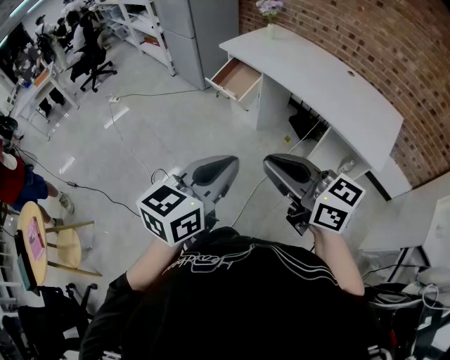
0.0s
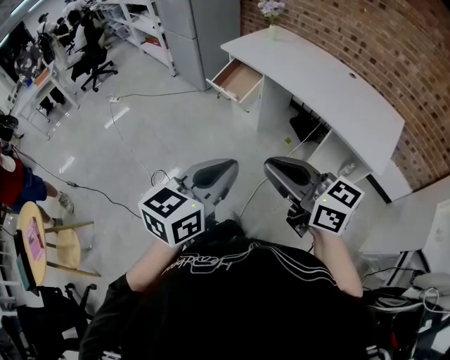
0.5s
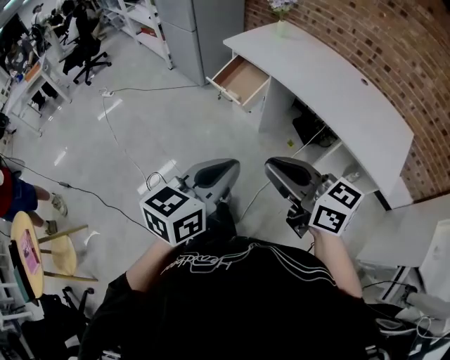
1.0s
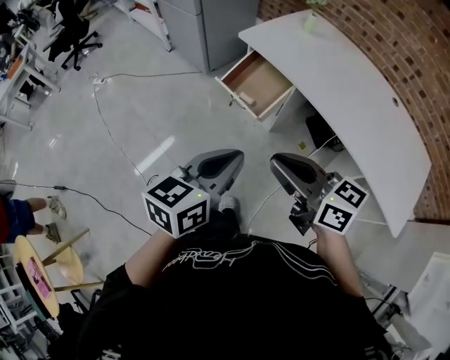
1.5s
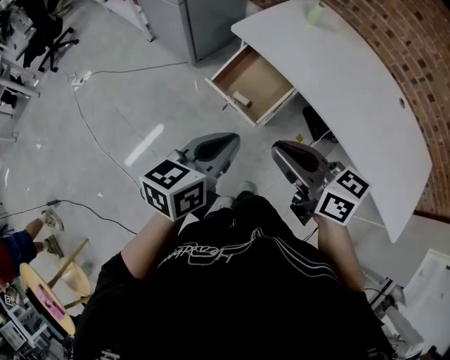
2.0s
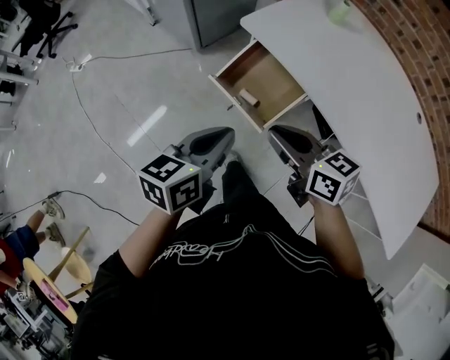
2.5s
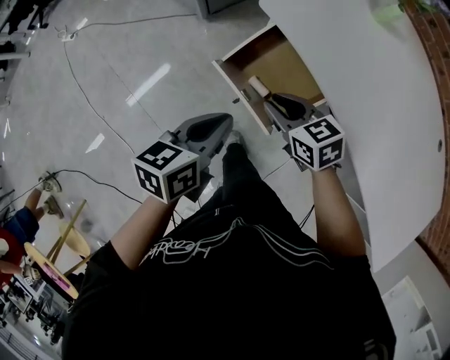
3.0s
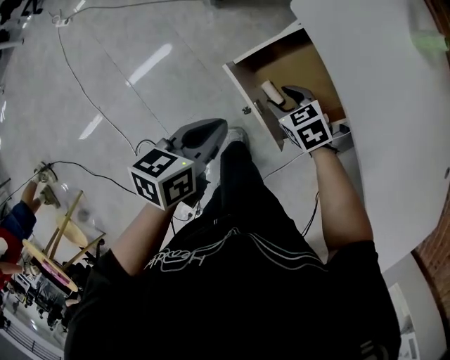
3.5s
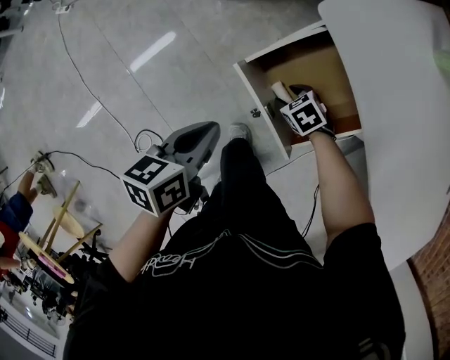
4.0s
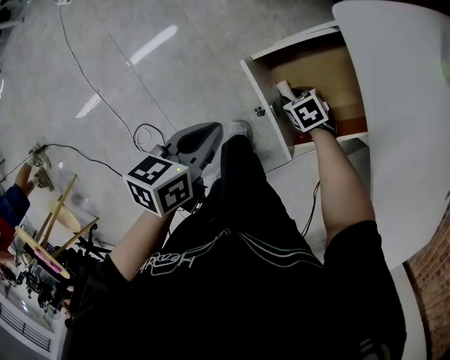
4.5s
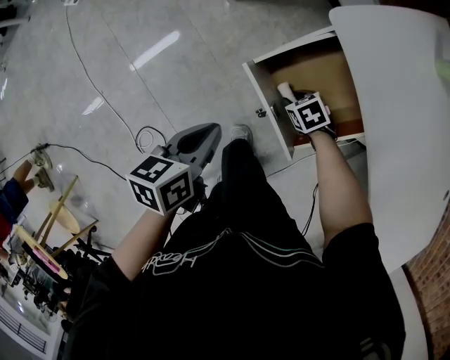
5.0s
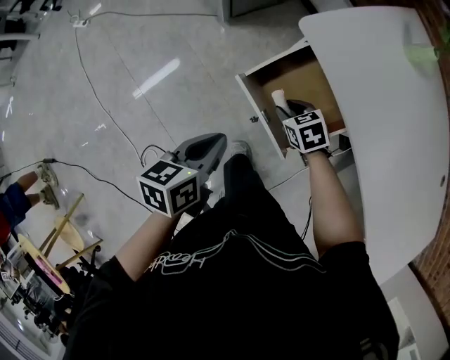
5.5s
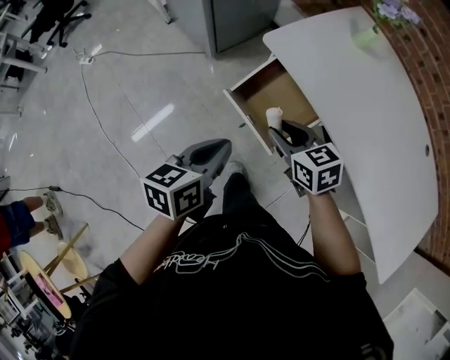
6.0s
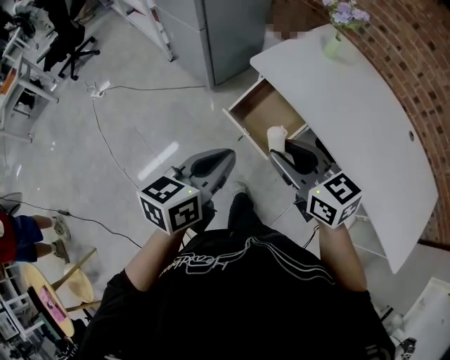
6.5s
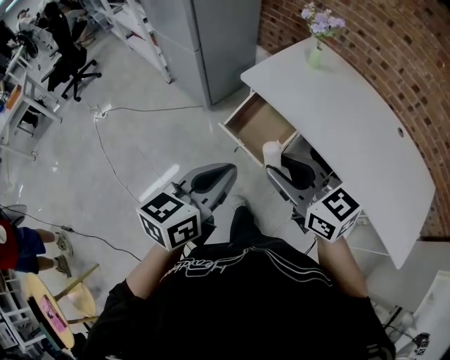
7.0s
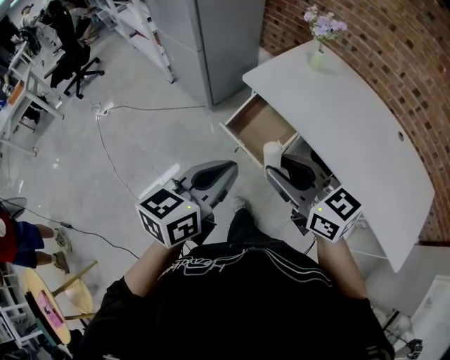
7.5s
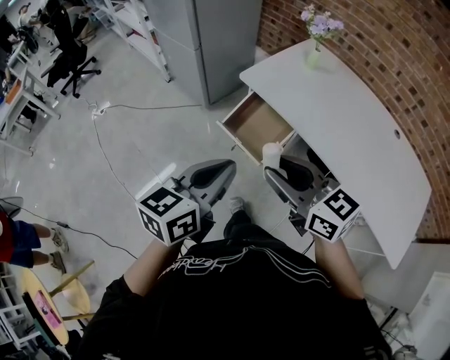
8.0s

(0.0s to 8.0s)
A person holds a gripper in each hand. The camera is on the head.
0.0s - 2.0s: Both grippers are carried forward, roughly 60 cm. The right gripper rotates about 20 degrees.
2.0s - 4.0s: The left gripper travels downward and forward by some 40 cm, and turns by some 30 degrees. Meanwhile the right gripper shifts some 60 cm downward and forward, points its fingers some 60 degrees further downward, and opens up.
4.0s - 6.0s: The right gripper goes about 35 cm upward, and tilts its fingers some 30 degrees upward, while the left gripper is displaced upward by roughly 20 cm.
6.0s - 8.0s: Both grippers move upward and backward, some 30 cm. The left gripper turns by about 20 degrees, while the right gripper turns by about 30 degrees.

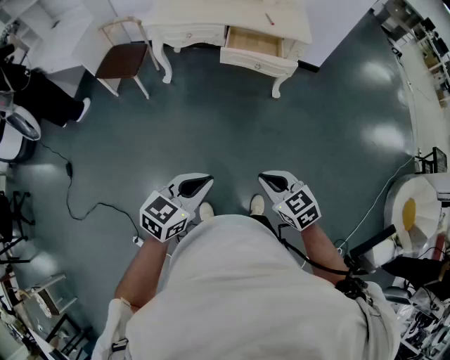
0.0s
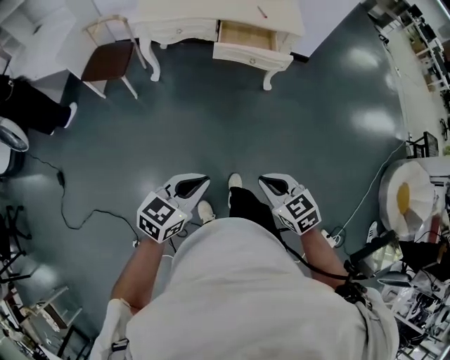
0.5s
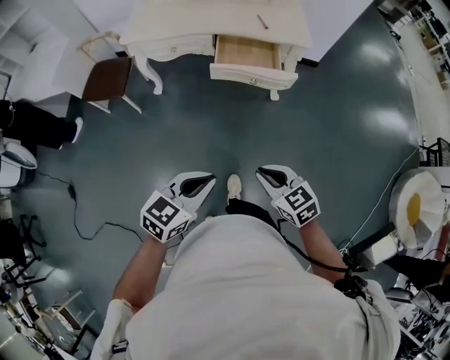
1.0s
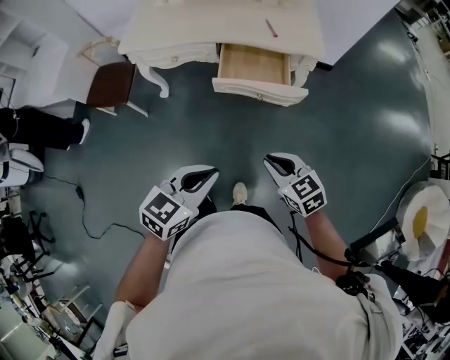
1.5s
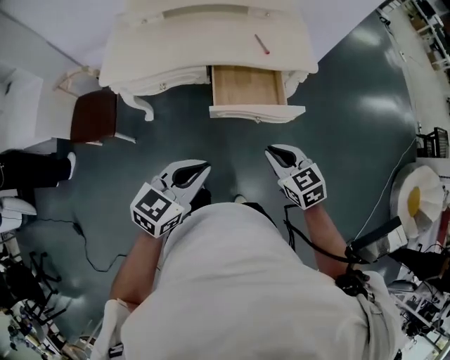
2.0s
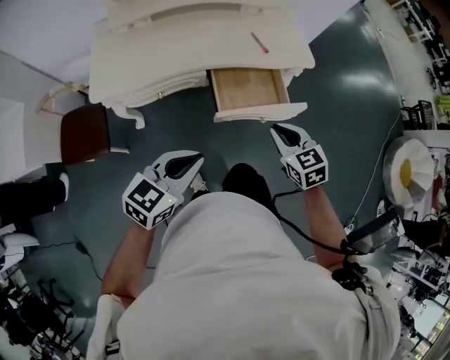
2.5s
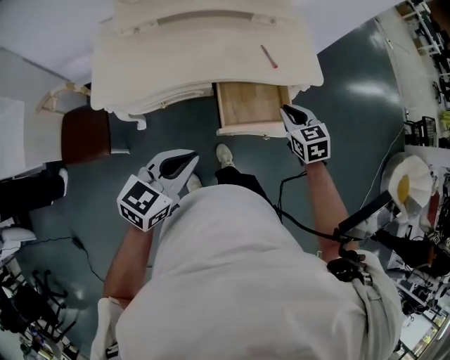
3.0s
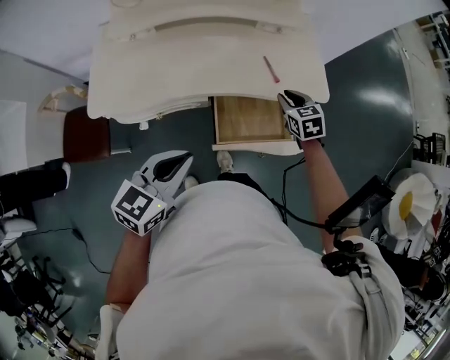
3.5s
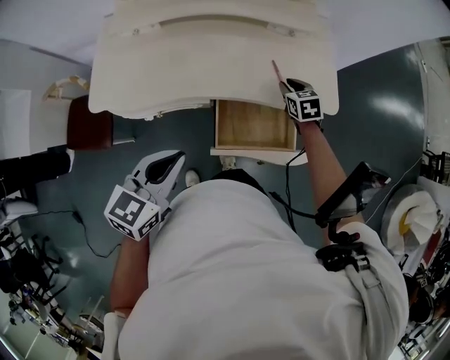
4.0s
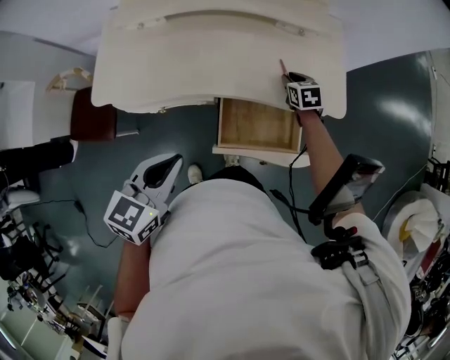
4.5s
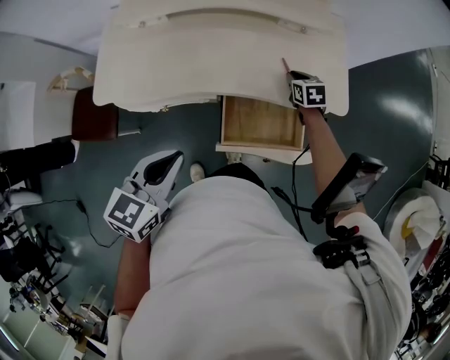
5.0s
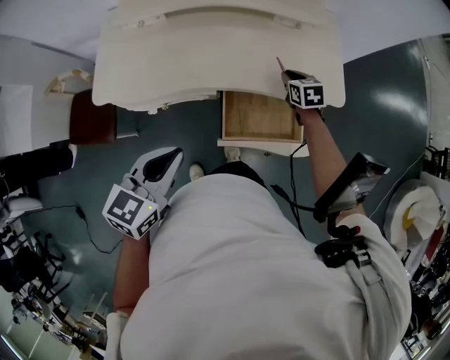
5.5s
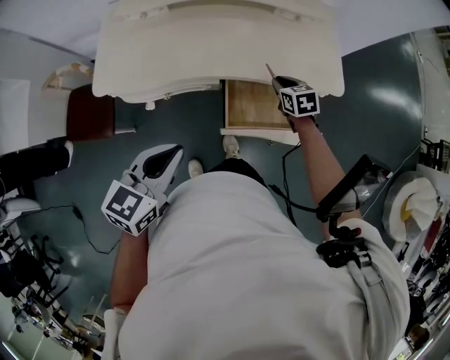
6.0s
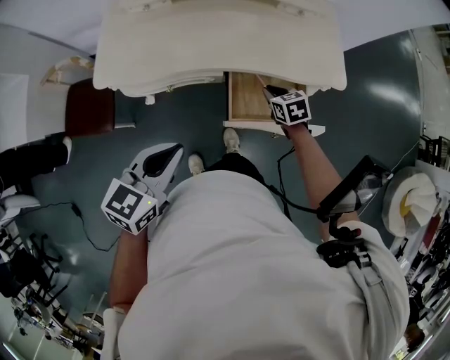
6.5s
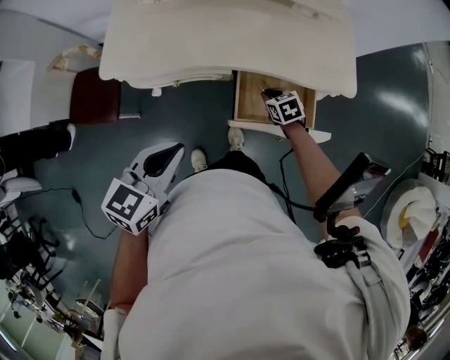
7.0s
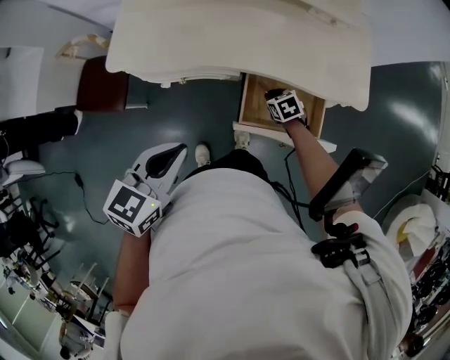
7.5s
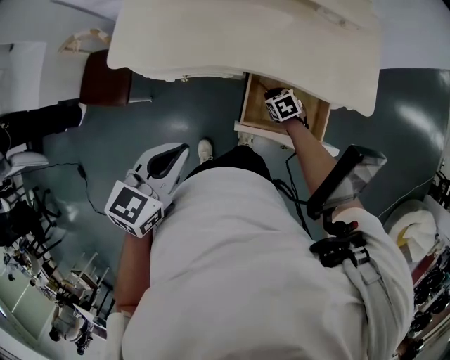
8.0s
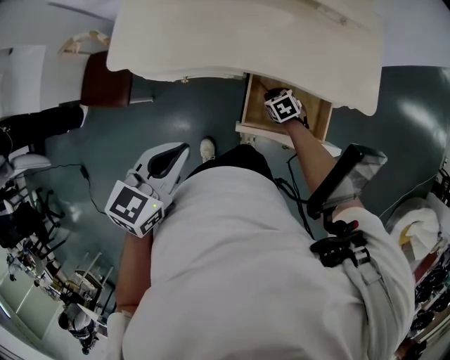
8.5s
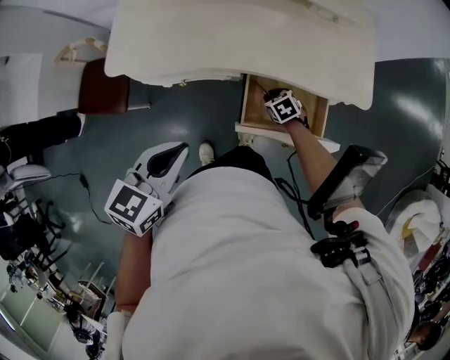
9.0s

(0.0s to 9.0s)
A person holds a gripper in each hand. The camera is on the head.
0.0s - 2.0s: The pair of grippers is taken forward, about 50 cm.
2.0s - 4.5s: The left gripper is displaced forward and to the left by approximately 25 cm. The right gripper heads forward, covering roughly 50 cm.
4.5s - 7.0s: The left gripper goes approximately 10 cm backward and to the left. Meanwhile the right gripper shifts some 20 cm backward and to the left.
7.0s - 9.0s: The right gripper travels downward by roughly 10 cm.

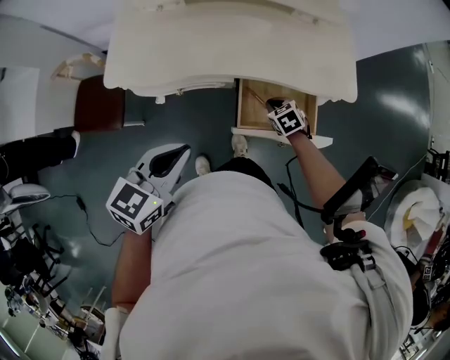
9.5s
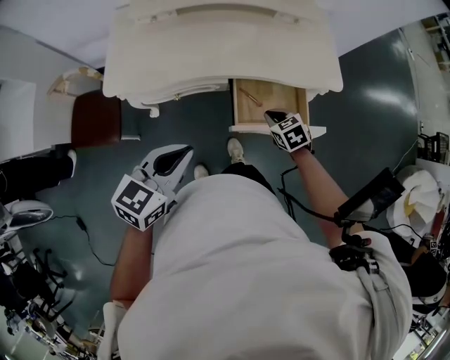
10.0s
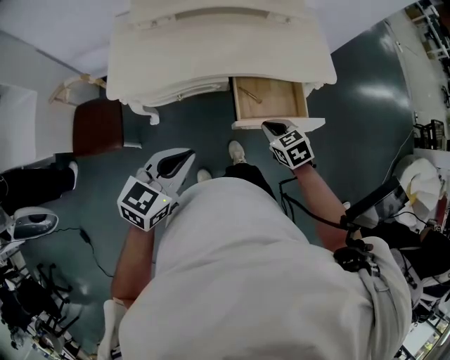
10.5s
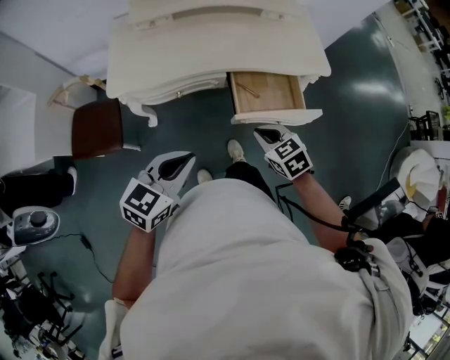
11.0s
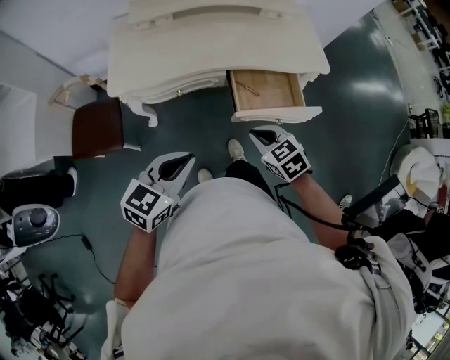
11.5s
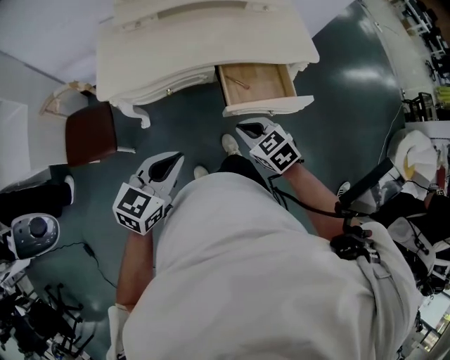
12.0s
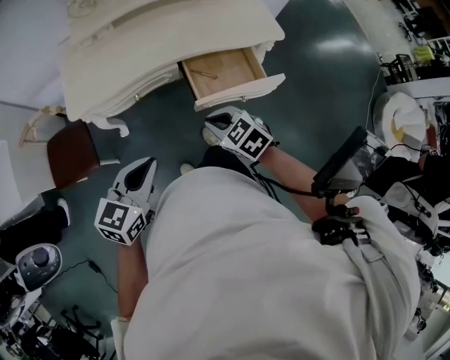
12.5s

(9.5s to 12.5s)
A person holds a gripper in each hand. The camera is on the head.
9.5s - 11.0s: The left gripper is displaced backward by approximately 15 cm. The right gripper goes roughly 30 cm backward and upward.
11.0s - 12.5s: There are only small adjustments of the grippers.

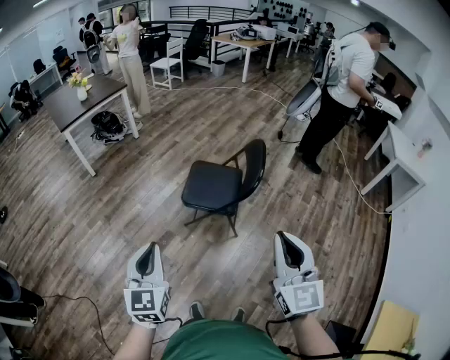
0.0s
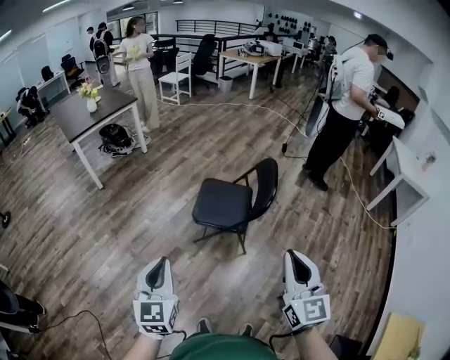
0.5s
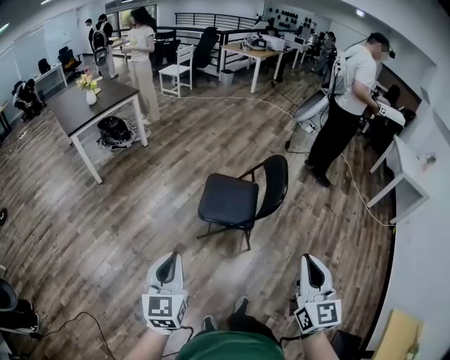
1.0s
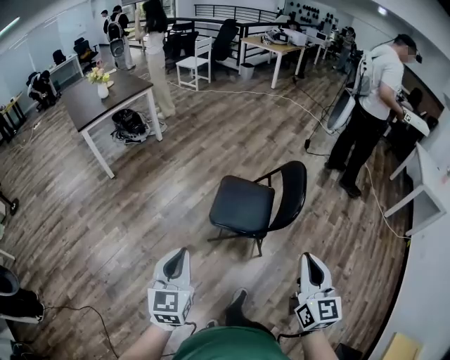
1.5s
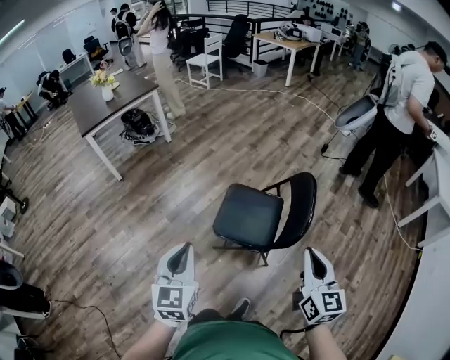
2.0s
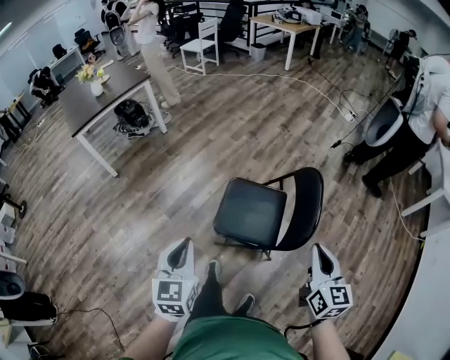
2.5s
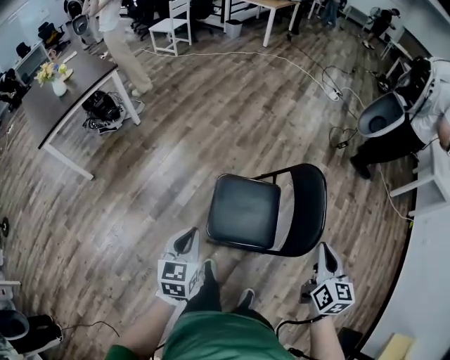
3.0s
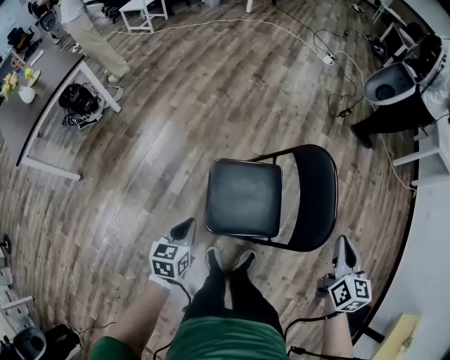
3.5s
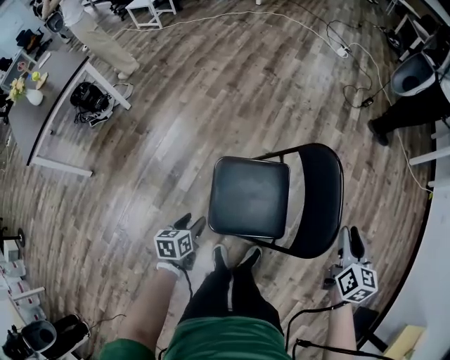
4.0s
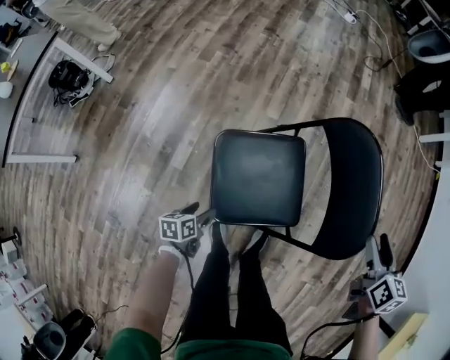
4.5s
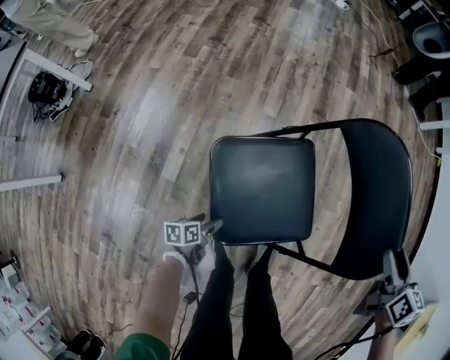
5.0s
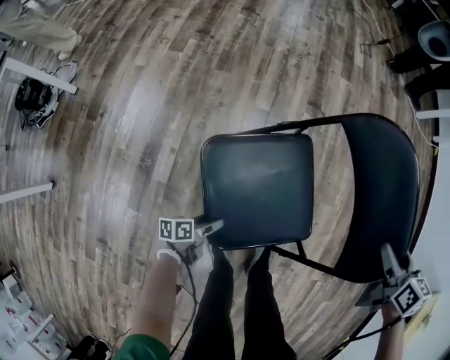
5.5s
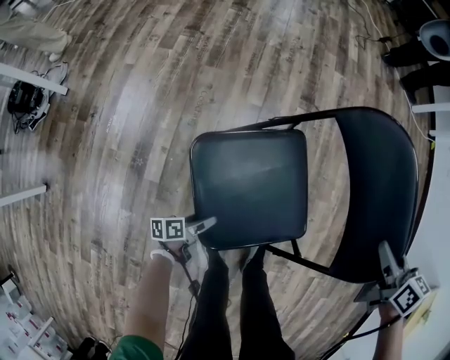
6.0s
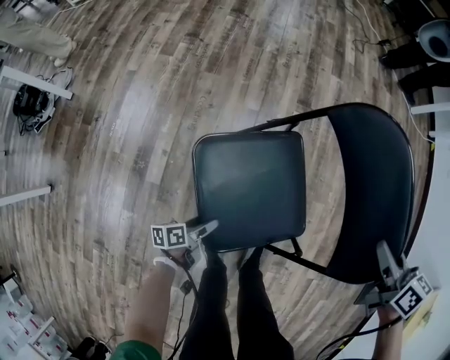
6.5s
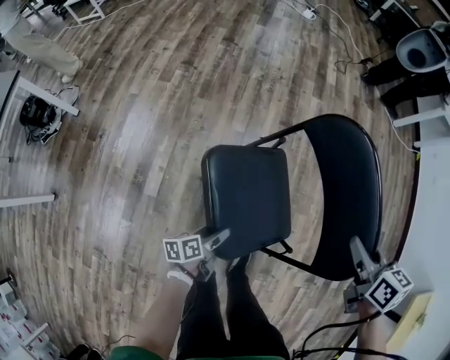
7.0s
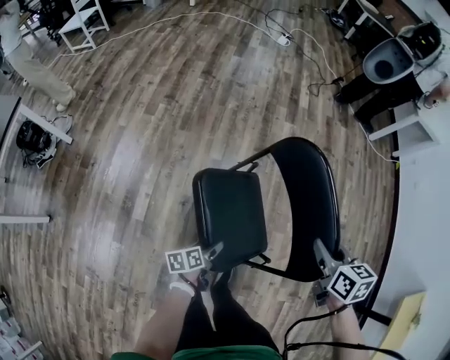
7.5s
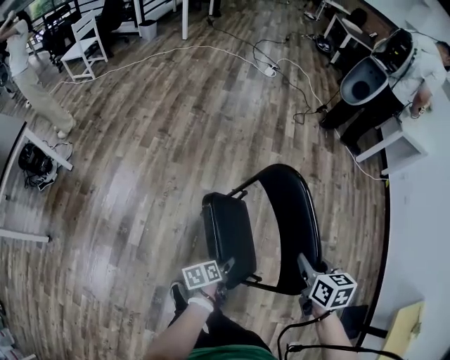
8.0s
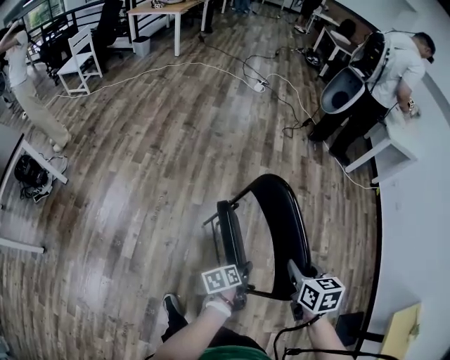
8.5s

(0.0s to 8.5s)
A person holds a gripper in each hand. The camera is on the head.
0.0s - 2.0s: Both grippers travel together forward, about 25 cm. The right gripper changes its angle by approximately 20 degrees.
2.0s - 4.0s: The left gripper goes about 35 cm downward, tilts its fingers roughly 30 degrees downward, and opens up; the right gripper ends up some 35 cm from where it was, rotates roughly 40 degrees, and opens up.
4.0s - 6.5s: The left gripper heads downward, covering roughly 30 cm, turns by some 40 degrees, and opens its fingers. The right gripper shifts some 15 cm downward, turns by some 20 degrees, and opens and closes again.
6.5s - 8.5s: The right gripper heads upward and to the right, covering some 20 cm; the left gripper shifts about 50 cm upward, to the right and forward.
